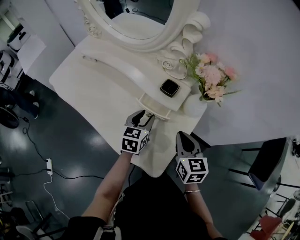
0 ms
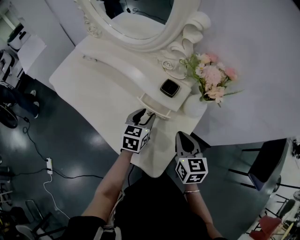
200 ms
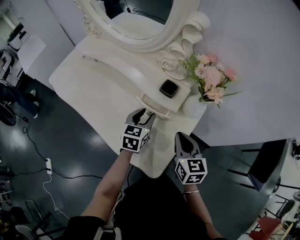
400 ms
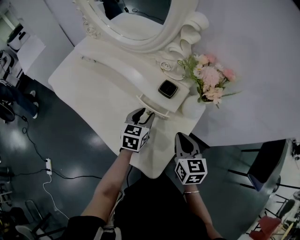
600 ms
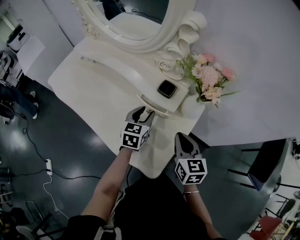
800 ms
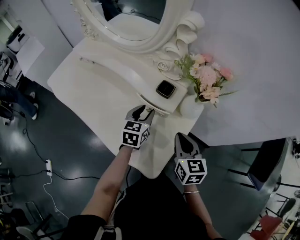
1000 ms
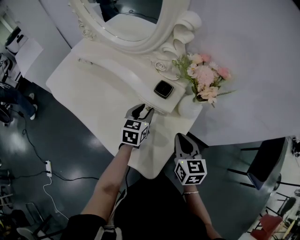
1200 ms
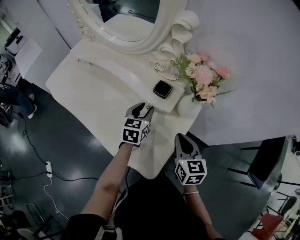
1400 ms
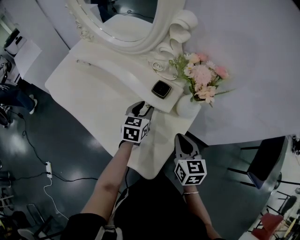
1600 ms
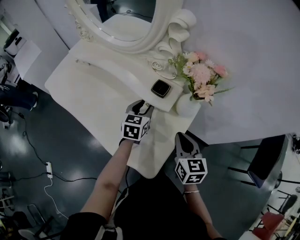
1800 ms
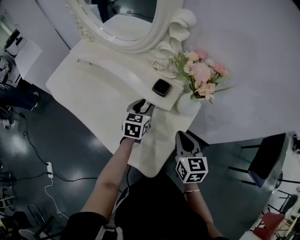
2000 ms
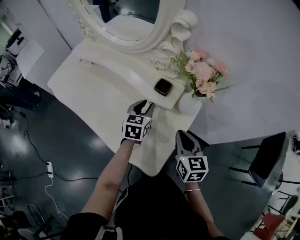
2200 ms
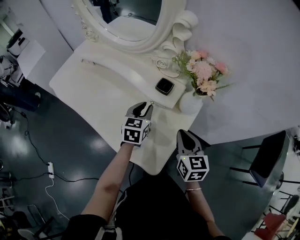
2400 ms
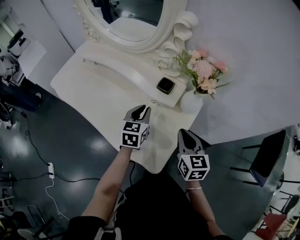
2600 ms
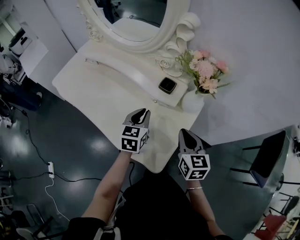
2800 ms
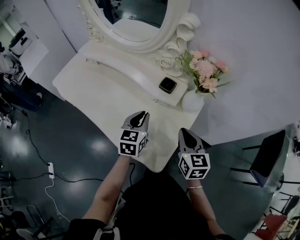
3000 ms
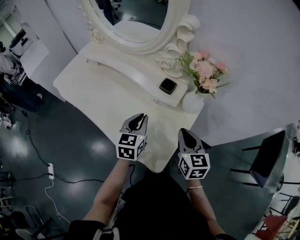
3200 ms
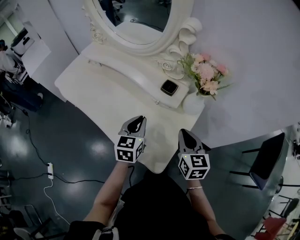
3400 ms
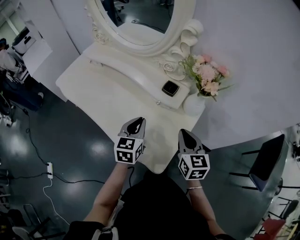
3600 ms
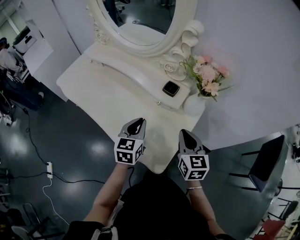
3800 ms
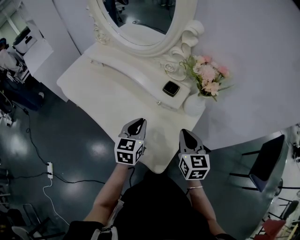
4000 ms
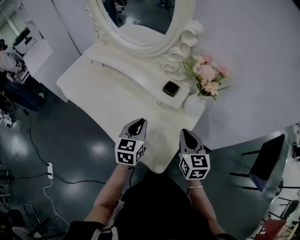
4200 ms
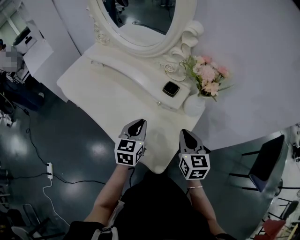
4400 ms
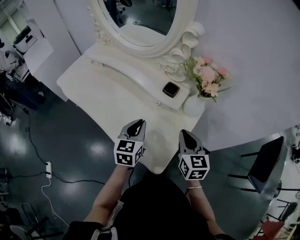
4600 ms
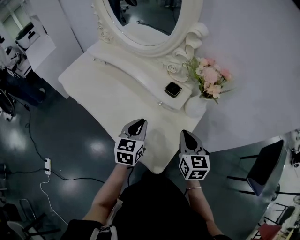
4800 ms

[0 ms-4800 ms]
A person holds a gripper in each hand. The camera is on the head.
0 ms to 1600 ms: The left gripper heads forward, covering about 5 cm.
1600 ms to 3200 ms: The left gripper travels backward by some 10 cm, and closes its fingers.
3200 ms to 4800 ms: The grippers move only a little.

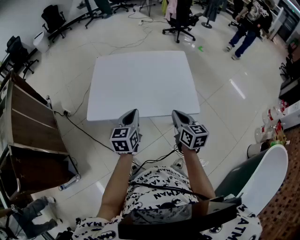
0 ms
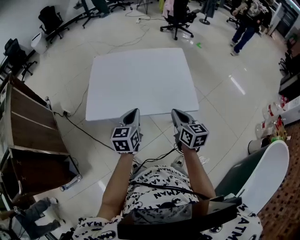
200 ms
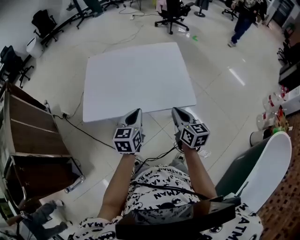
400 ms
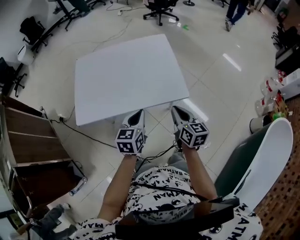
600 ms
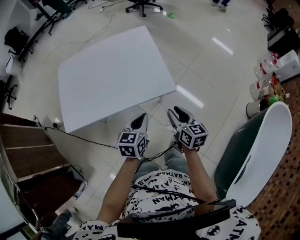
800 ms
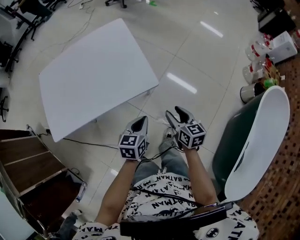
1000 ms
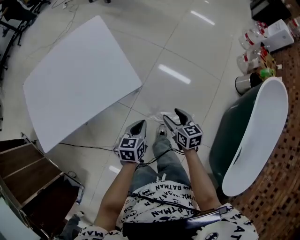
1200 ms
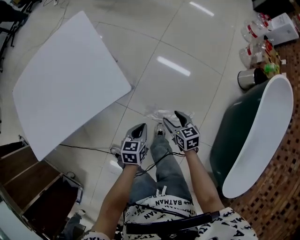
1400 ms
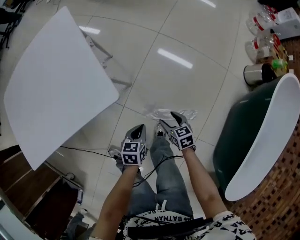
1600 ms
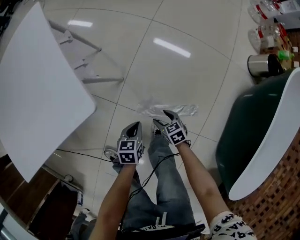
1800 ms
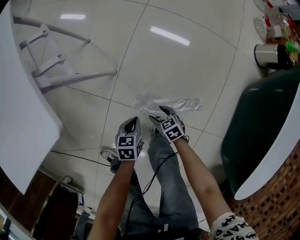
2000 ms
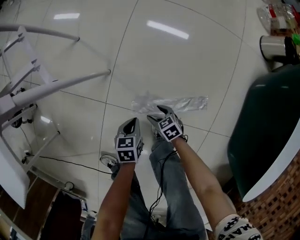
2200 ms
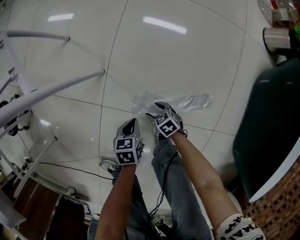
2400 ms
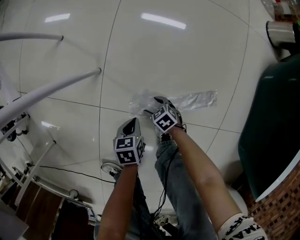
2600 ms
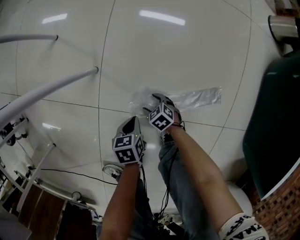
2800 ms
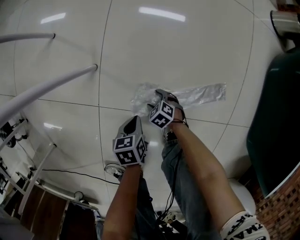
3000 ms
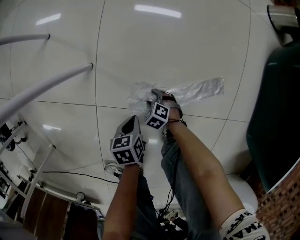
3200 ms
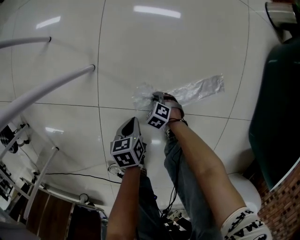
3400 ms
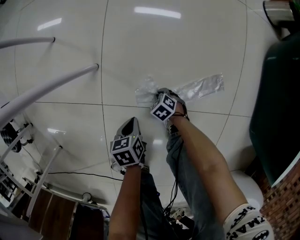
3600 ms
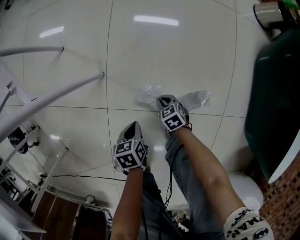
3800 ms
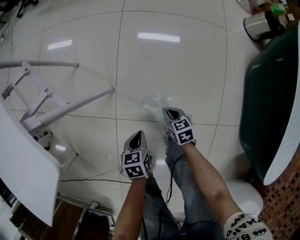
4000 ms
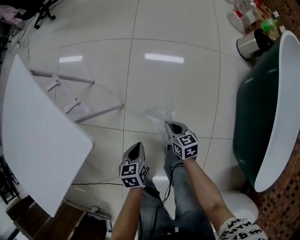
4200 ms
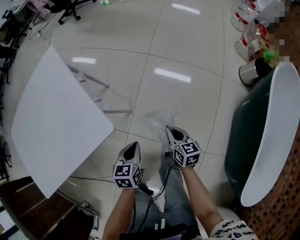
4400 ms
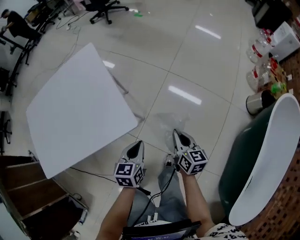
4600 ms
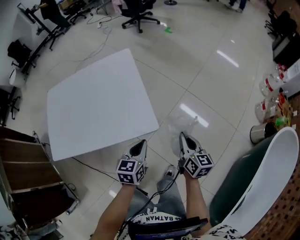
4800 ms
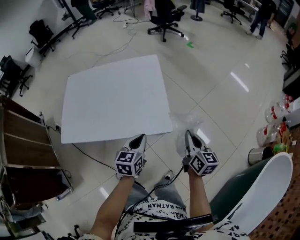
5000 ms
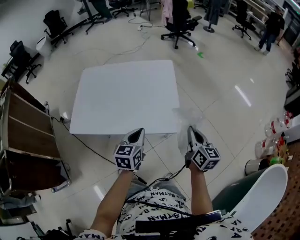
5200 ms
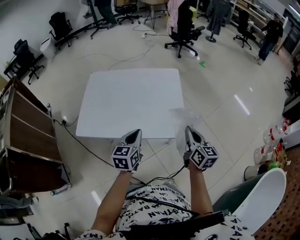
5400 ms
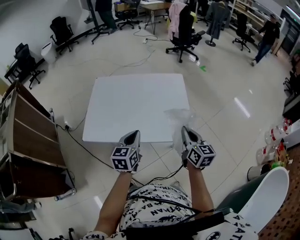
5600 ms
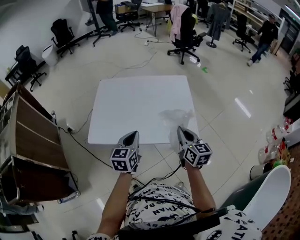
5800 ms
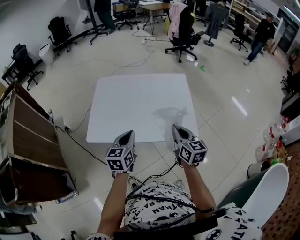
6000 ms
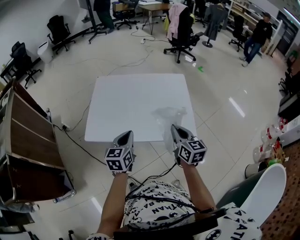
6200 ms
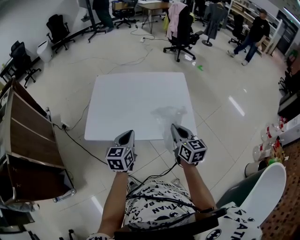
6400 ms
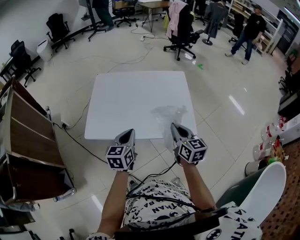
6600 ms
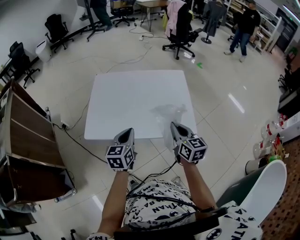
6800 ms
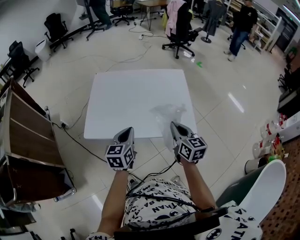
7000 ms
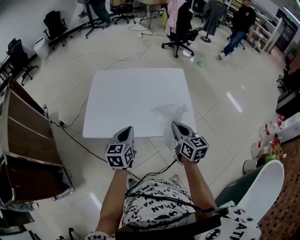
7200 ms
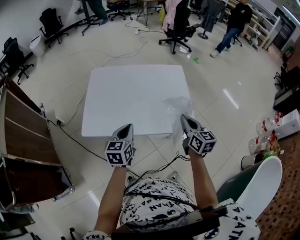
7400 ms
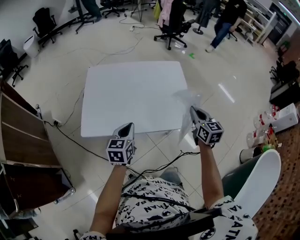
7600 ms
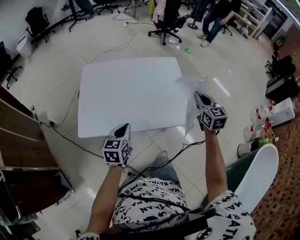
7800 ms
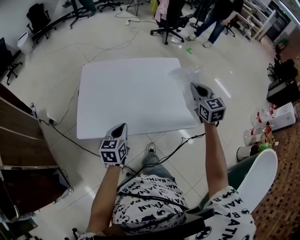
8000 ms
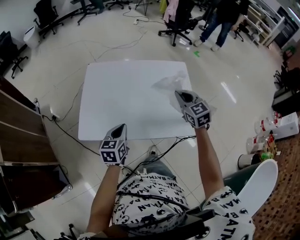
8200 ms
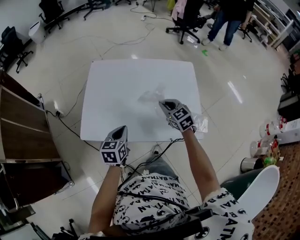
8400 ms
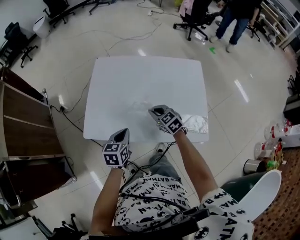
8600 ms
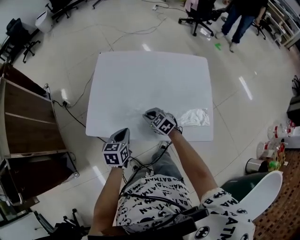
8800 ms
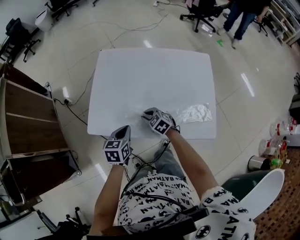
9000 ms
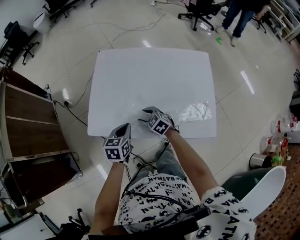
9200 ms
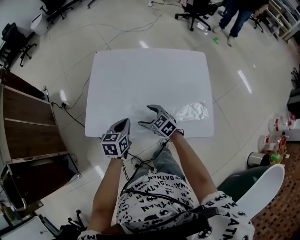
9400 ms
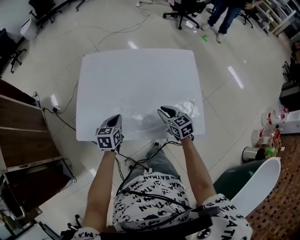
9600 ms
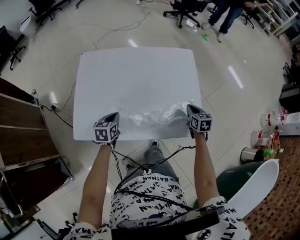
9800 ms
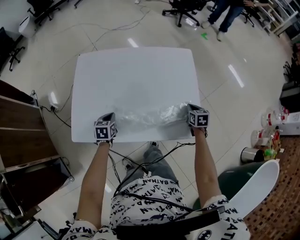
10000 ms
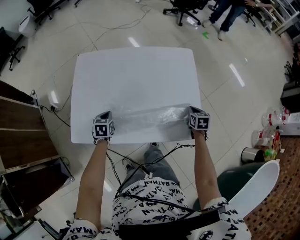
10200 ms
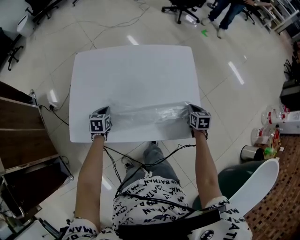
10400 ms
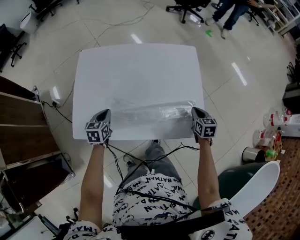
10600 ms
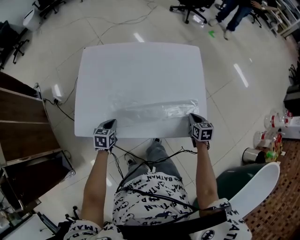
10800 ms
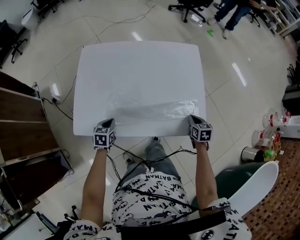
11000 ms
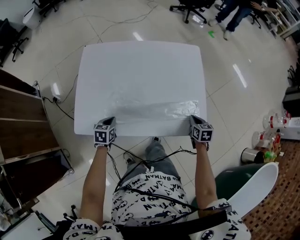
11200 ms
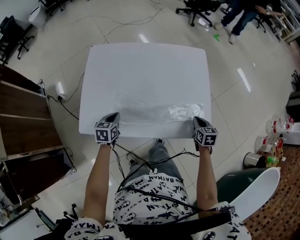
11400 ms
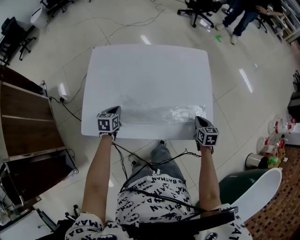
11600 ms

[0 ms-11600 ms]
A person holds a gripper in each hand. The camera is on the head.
0 ms to 1400 ms: The right gripper ends up about 50 cm from where it was, rotates roughly 30 degrees, and opens up, while the left gripper changes place by roughly 50 cm, and changes its angle by about 40 degrees.
1400 ms to 2800 ms: The two grippers go approximately 50 cm downward. The left gripper changes its angle by some 20 degrees; the right gripper turns by some 30 degrees.
2800 ms to 4400 ms: The two grippers go roughly 50 cm upward. The right gripper tips its fingers upward by about 30 degrees, and closes, while the left gripper swivels approximately 30 degrees.
4400 ms to 5800 ms: The right gripper shifts some 40 cm upward, and changes its angle by some 40 degrees. The left gripper shifts by roughly 50 cm, and turns by roughly 40 degrees.
5800 ms to 7200 ms: There are only small adjustments of the grippers.
7200 ms to 8800 ms: The left gripper heads downward, covering some 15 cm, while the right gripper ends up about 35 cm from where it was, and turns by about 50 degrees.
8800 ms to 10200 ms: The right gripper changes place by approximately 40 cm, swivels roughly 60 degrees, and opens and closes again. The left gripper ends up about 15 cm from where it was.
10200 ms to 11600 ms: The right gripper heads backward, covering roughly 5 cm, while the left gripper moves about 10 cm backward and comes back.

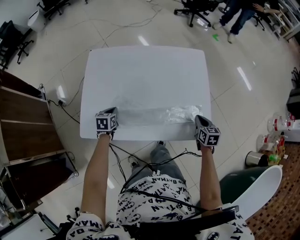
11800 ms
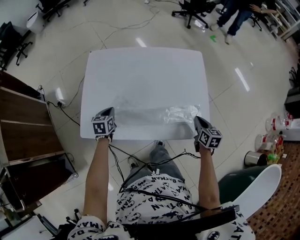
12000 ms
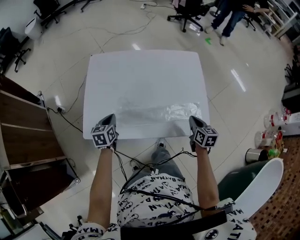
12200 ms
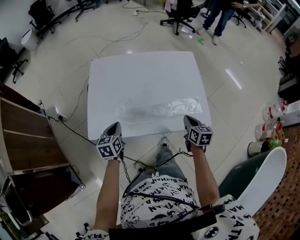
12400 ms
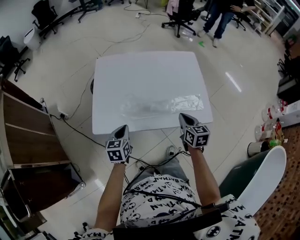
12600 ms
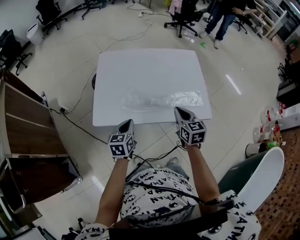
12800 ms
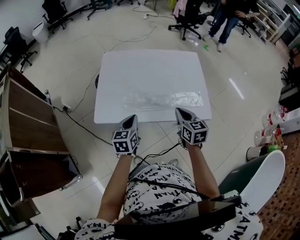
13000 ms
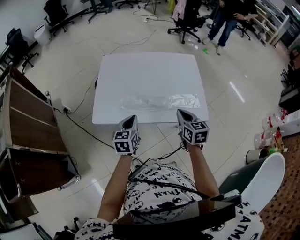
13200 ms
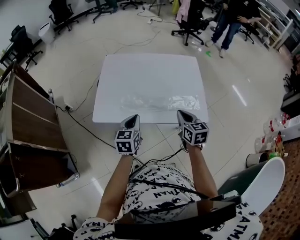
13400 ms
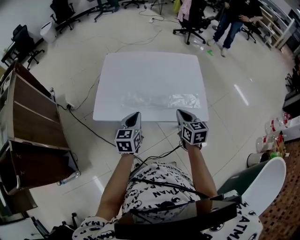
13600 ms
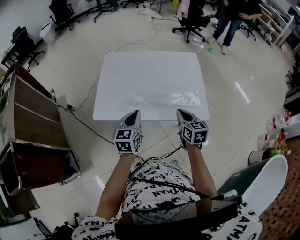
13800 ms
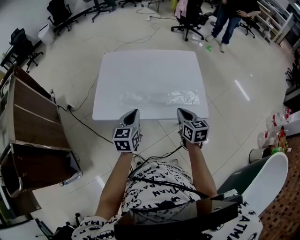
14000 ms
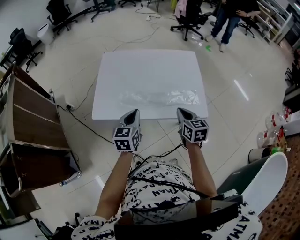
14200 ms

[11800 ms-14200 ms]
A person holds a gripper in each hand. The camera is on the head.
11800 ms to 13000 ms: The right gripper travels to the left, upward and backward by about 25 cm; the left gripper travels upward and backward by about 25 cm, and rotates approximately 30 degrees.
13000 ms to 14200 ms: The left gripper goes roughly 5 cm upward.

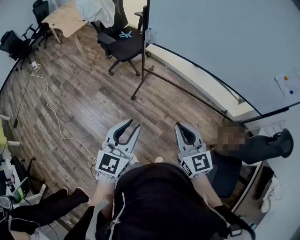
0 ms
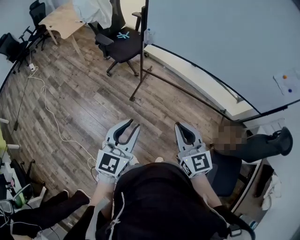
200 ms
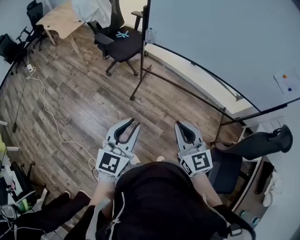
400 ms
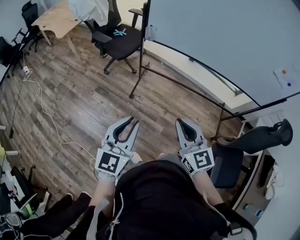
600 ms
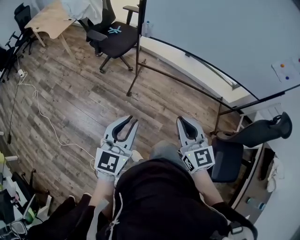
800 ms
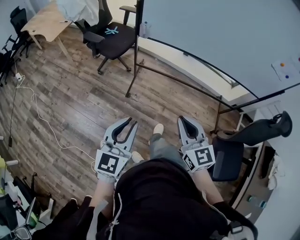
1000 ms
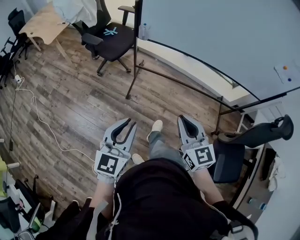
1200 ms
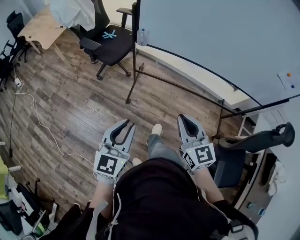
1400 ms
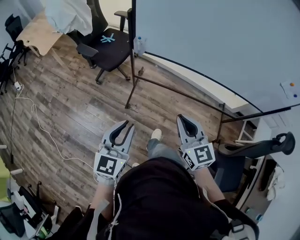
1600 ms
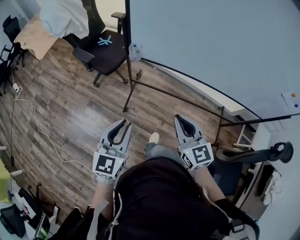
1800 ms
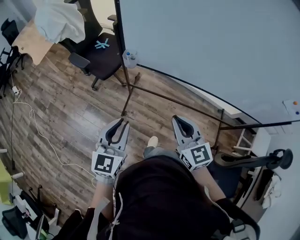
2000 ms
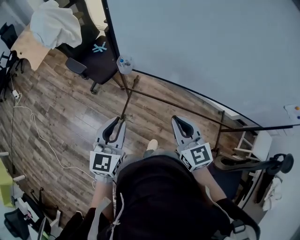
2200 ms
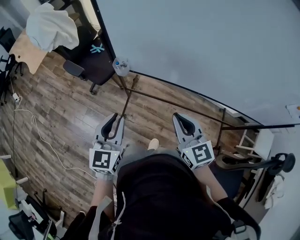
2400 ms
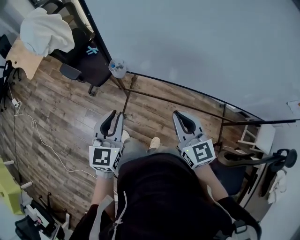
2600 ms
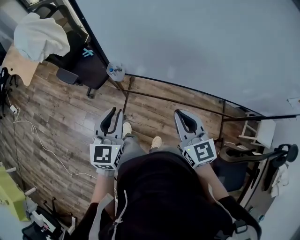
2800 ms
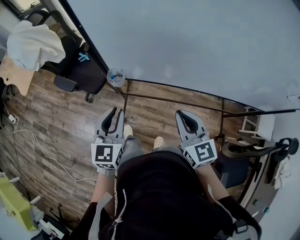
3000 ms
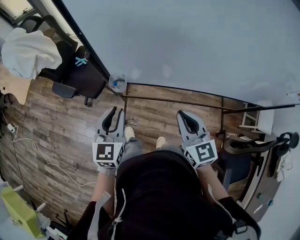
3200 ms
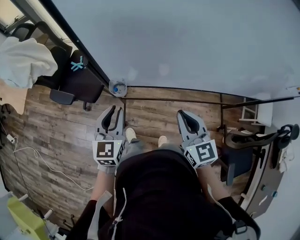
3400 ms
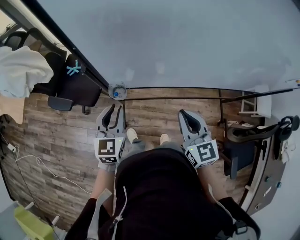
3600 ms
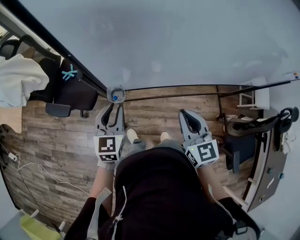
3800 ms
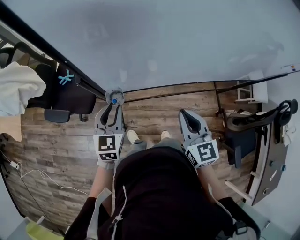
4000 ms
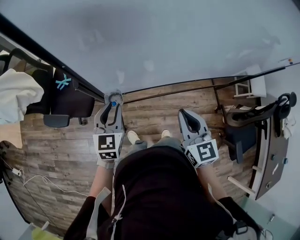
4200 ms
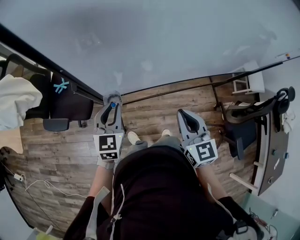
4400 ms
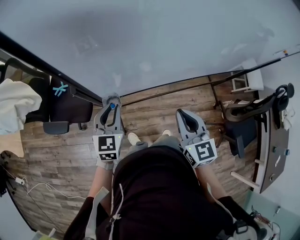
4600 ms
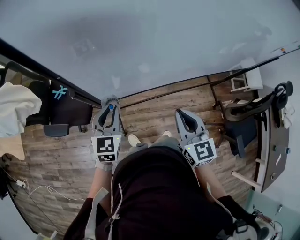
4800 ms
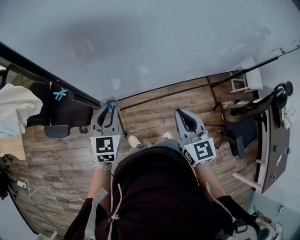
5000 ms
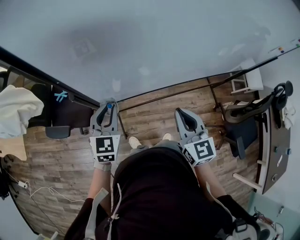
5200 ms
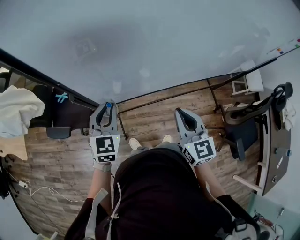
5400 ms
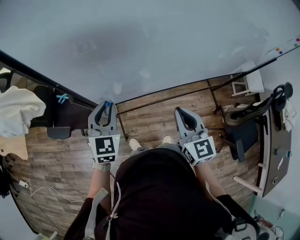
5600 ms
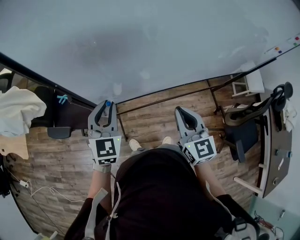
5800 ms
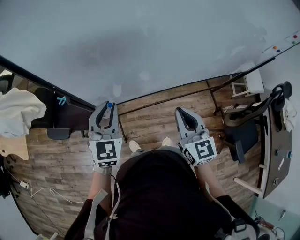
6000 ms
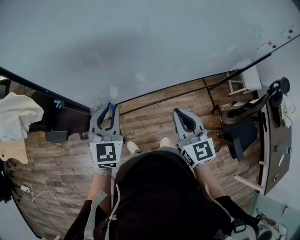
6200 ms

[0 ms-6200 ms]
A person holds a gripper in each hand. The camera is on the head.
0 ms to 1600 ms: The two grippers go roughly 20 cm forward.
1600 ms to 3200 ms: Both grippers move forward, roughly 30 cm.
3200 ms to 4600 ms: The right gripper swivels some 20 degrees. The left gripper heads forward, covering approximately 10 cm, and swivels approximately 20 degrees.
4600 ms to 6200 ms: The right gripper shifts some 10 cm to the right and upward. The left gripper travels upward and to the right by some 15 cm.
